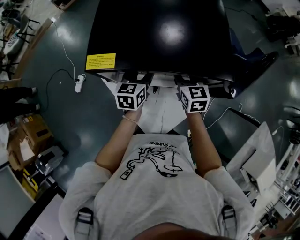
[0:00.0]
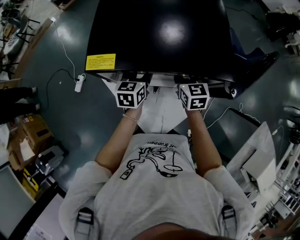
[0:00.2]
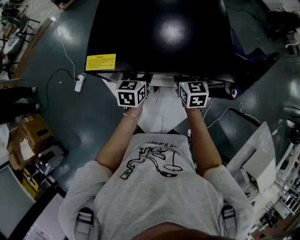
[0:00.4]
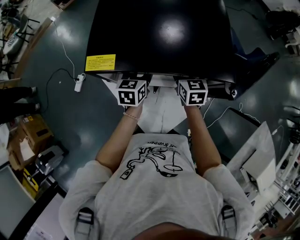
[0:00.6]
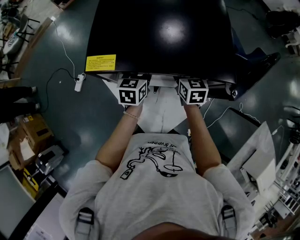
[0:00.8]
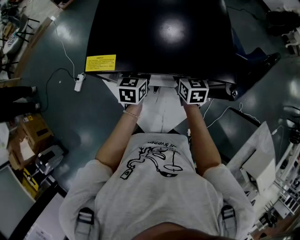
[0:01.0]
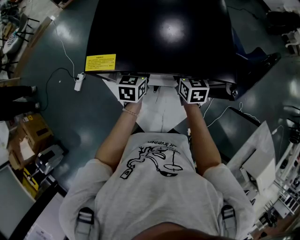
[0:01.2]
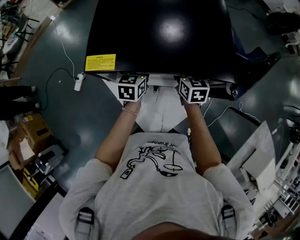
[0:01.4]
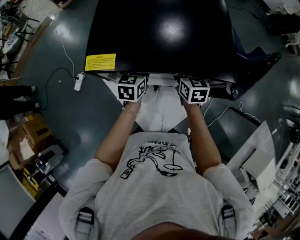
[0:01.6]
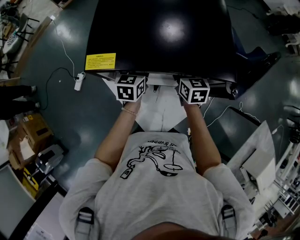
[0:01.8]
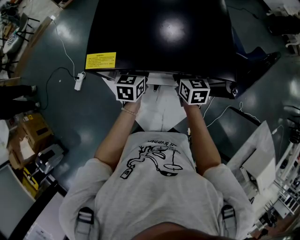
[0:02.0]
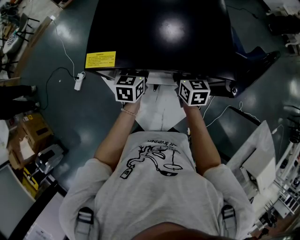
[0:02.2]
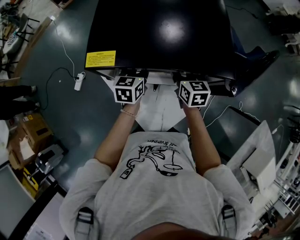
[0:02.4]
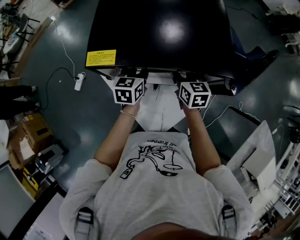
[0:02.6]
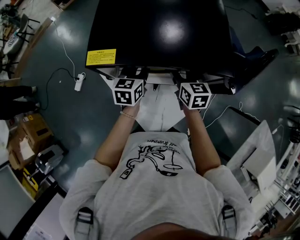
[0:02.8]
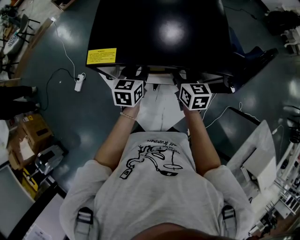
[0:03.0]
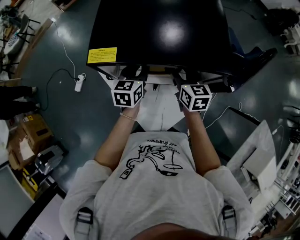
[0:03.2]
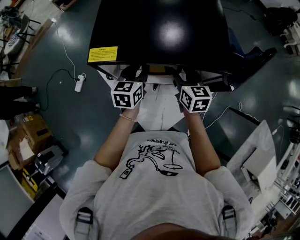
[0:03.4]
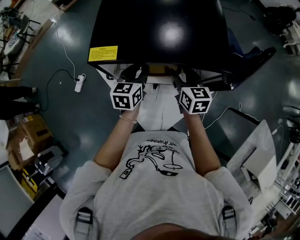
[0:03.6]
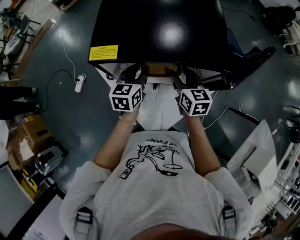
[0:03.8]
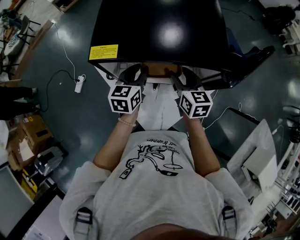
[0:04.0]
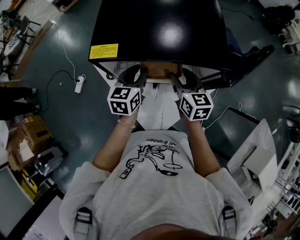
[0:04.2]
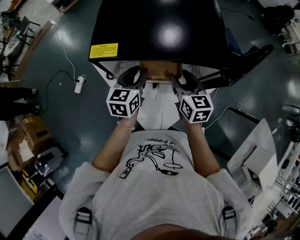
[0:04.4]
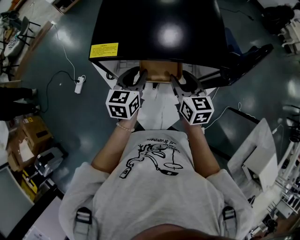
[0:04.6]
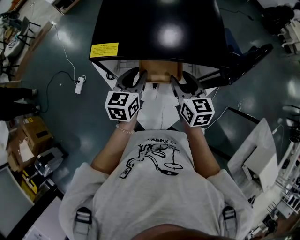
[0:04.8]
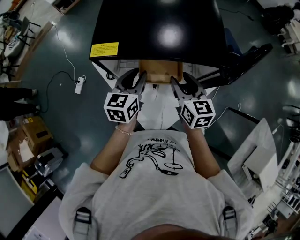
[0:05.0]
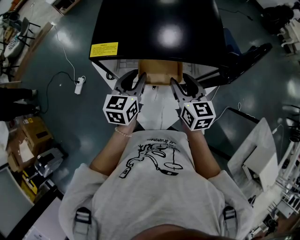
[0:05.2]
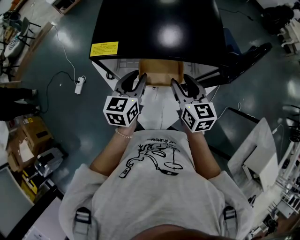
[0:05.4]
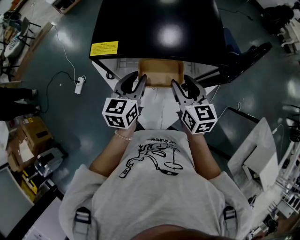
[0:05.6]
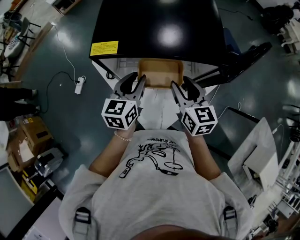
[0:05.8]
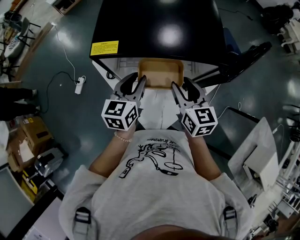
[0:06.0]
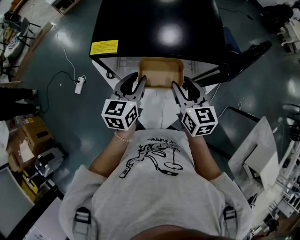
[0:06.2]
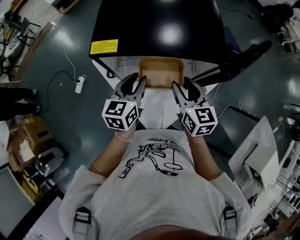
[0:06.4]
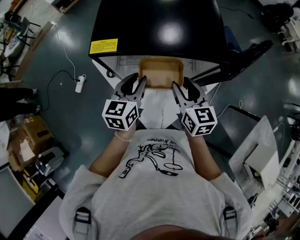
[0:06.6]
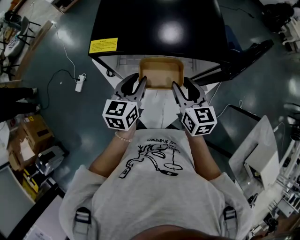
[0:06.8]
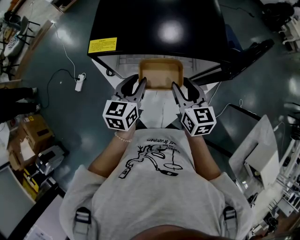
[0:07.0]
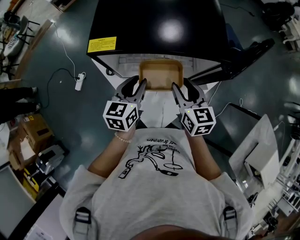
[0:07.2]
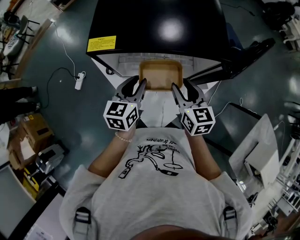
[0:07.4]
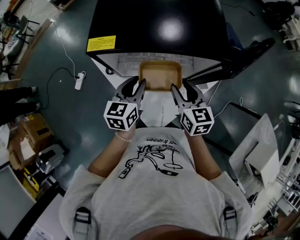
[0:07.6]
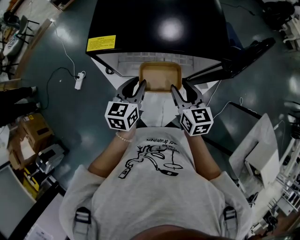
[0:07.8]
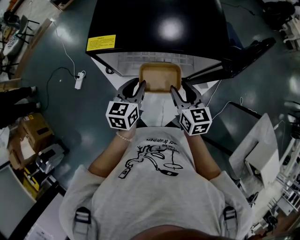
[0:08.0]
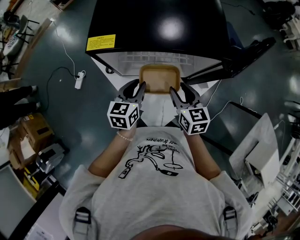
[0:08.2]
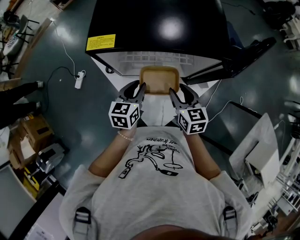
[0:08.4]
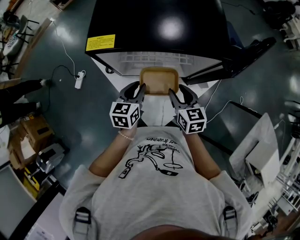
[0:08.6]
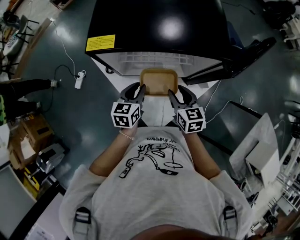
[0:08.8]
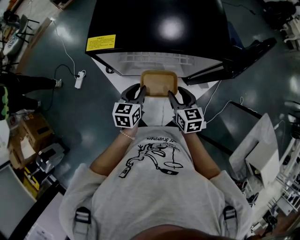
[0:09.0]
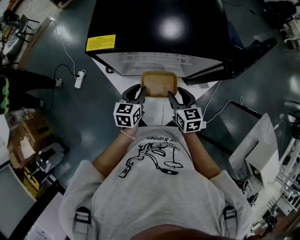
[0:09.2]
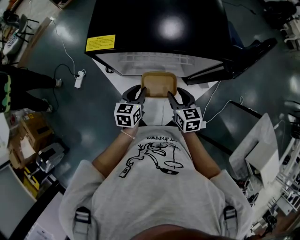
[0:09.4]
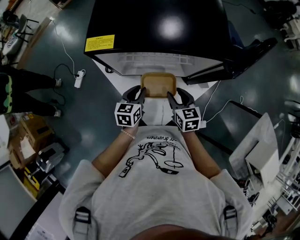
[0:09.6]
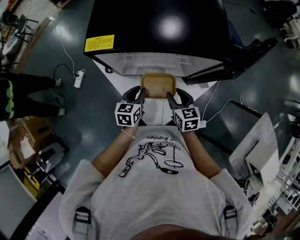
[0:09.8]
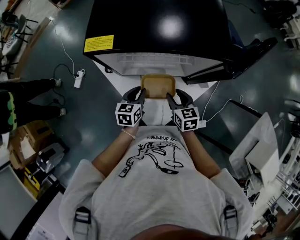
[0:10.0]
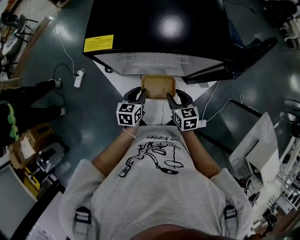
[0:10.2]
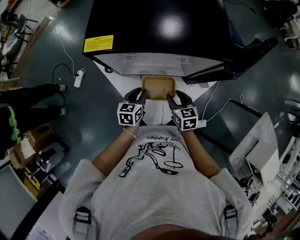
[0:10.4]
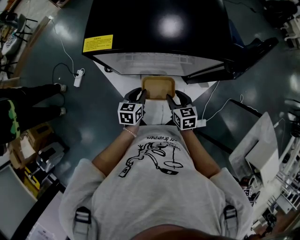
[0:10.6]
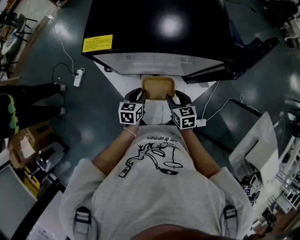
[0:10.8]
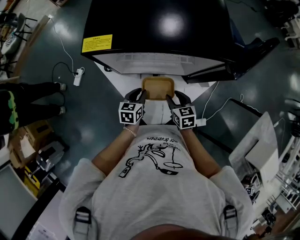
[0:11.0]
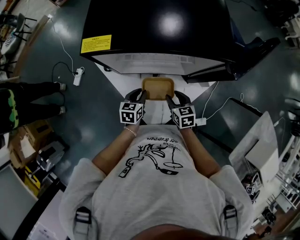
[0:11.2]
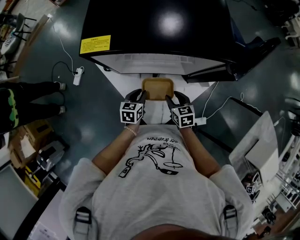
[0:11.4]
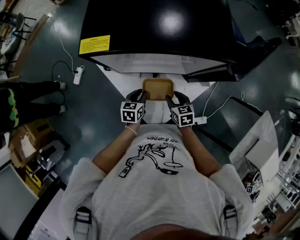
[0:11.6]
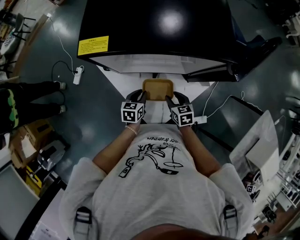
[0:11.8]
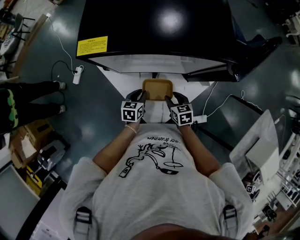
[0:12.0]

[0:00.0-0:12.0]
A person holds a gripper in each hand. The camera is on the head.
0:00.0 to 0:03.0: The grippers stay close to where they were, moving slightly.
0:03.0 to 0:04.4: The left gripper shifts by approximately 5 cm. The right gripper travels backward by about 5 cm.
0:04.4 to 0:06.0: The left gripper ends up about 5 cm from where it was, while the right gripper ends up approximately 5 cm from where it was.
0:06.0 to 0:07.6: The grippers move only a little.
0:07.6 to 0:09.0: Both grippers travel together downward, roughly 10 cm.
0:09.0 to 0:10.4: The grippers both shift downward by about 5 cm.
0:10.4 to 0:12.0: Both grippers travel together downward, roughly 10 cm.

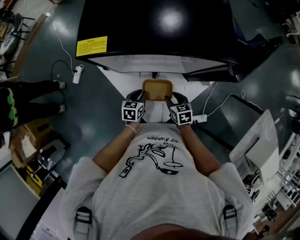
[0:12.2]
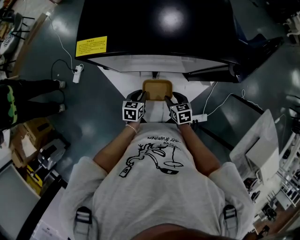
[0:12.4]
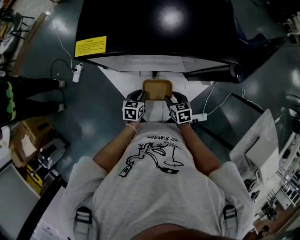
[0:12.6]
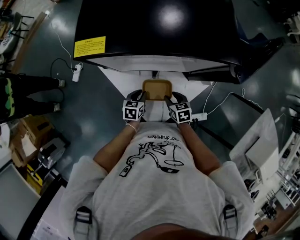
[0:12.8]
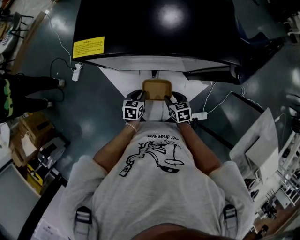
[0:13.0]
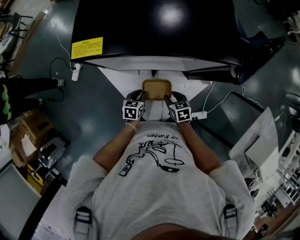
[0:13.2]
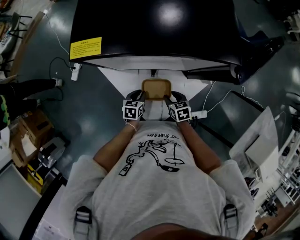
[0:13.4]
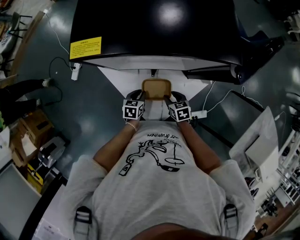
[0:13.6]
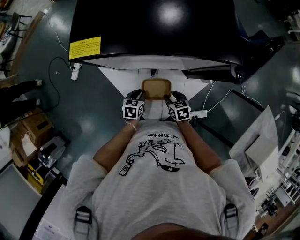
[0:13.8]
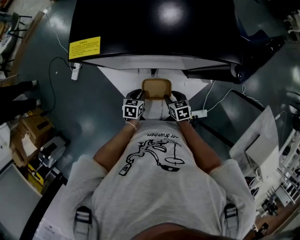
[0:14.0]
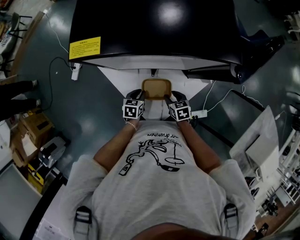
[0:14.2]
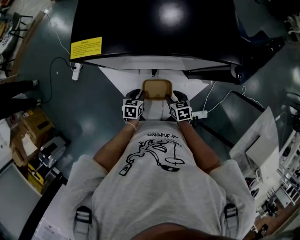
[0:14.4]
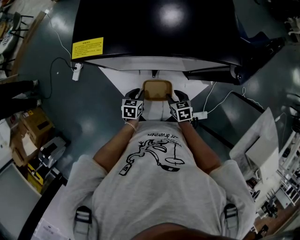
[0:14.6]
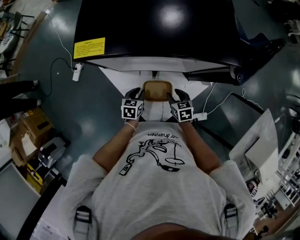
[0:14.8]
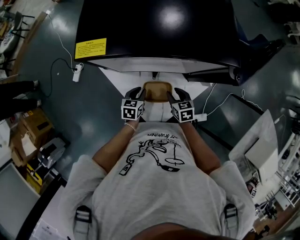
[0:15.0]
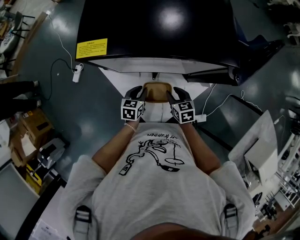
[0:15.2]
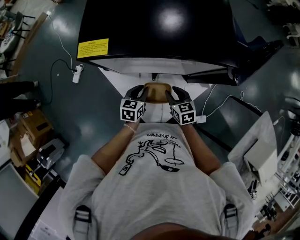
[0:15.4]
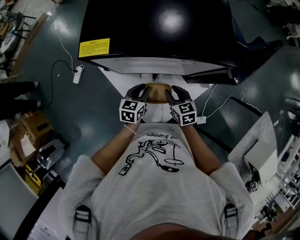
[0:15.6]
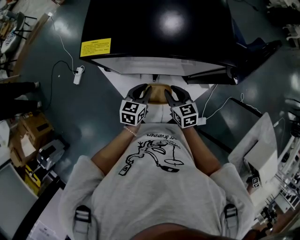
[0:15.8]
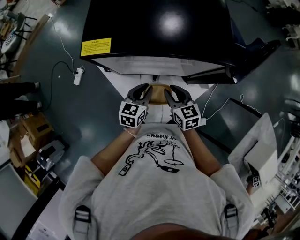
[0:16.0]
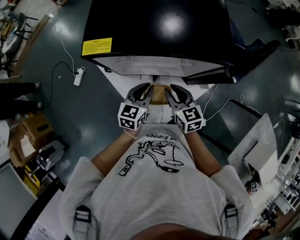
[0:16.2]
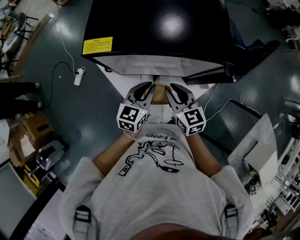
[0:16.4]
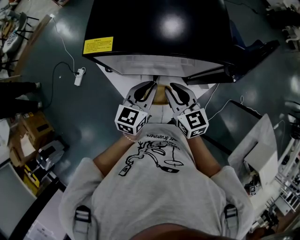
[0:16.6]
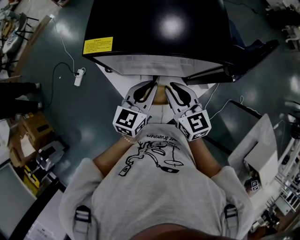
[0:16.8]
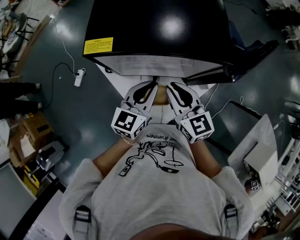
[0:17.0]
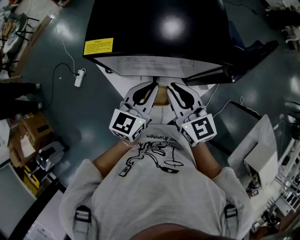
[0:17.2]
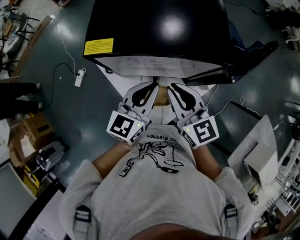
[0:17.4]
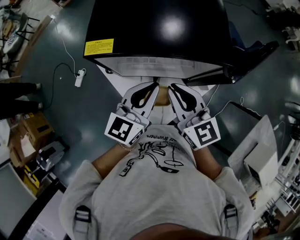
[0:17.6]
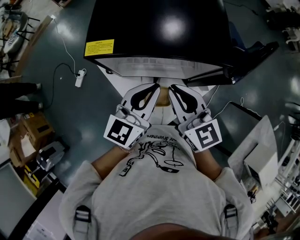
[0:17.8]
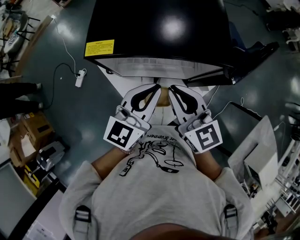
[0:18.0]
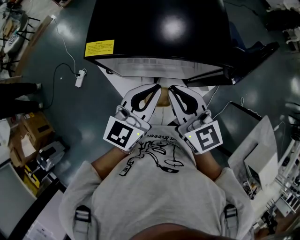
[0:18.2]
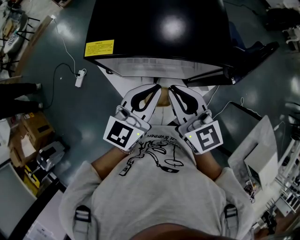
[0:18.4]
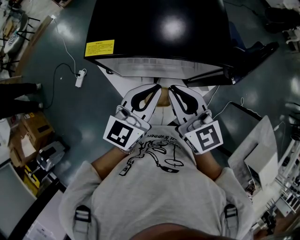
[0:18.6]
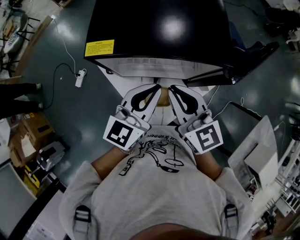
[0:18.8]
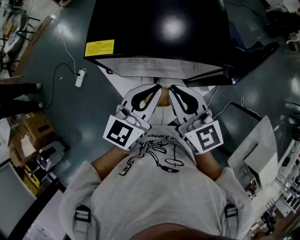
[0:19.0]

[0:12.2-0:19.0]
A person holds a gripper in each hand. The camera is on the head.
0:12.2 to 0:13.6: The grippers move only a little.
0:13.6 to 0:15.0: The left gripper ends up roughly 5 cm from where it was. The right gripper ends up roughly 5 cm from where it was.
0:15.0 to 0:16.2: The grippers both shift upward by approximately 15 cm. The left gripper swivels approximately 20 degrees.
0:16.2 to 0:17.6: Both grippers move upward, approximately 15 cm. The left gripper turns by roughly 20 degrees.
0:17.6 to 0:19.0: There are only small adjustments of the grippers.

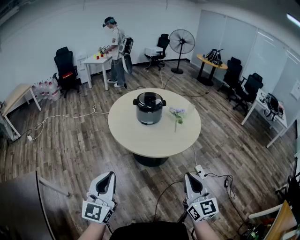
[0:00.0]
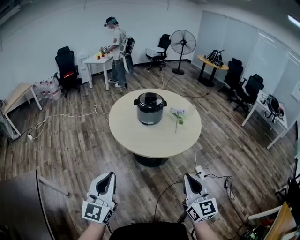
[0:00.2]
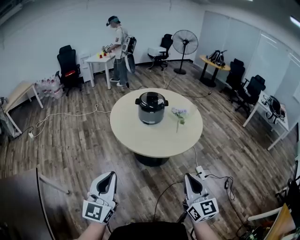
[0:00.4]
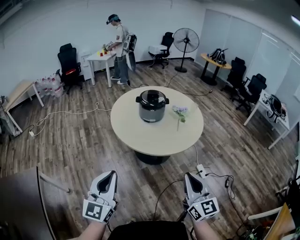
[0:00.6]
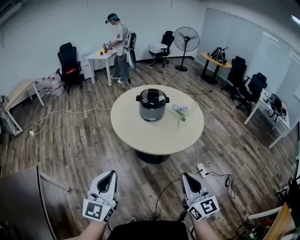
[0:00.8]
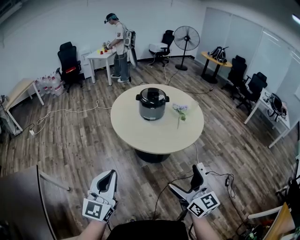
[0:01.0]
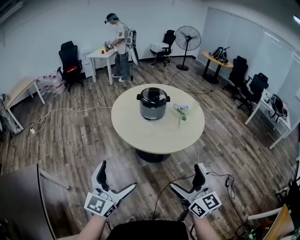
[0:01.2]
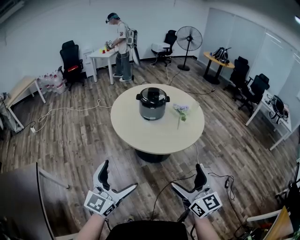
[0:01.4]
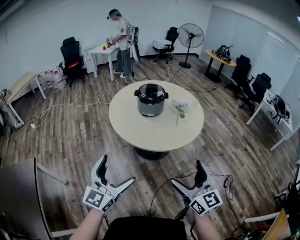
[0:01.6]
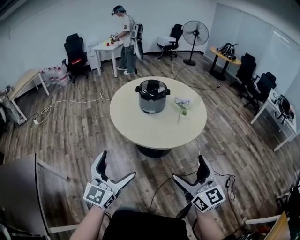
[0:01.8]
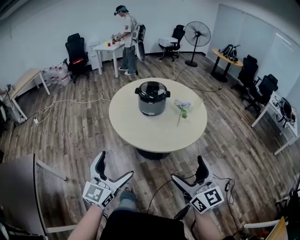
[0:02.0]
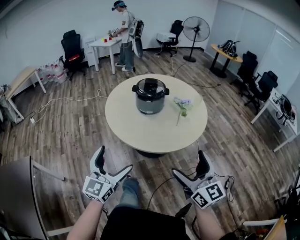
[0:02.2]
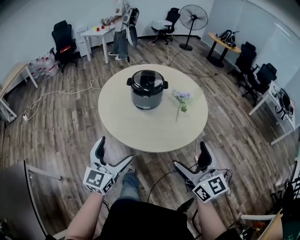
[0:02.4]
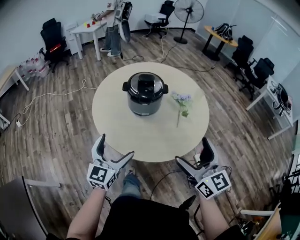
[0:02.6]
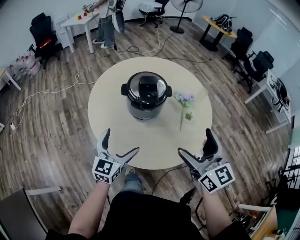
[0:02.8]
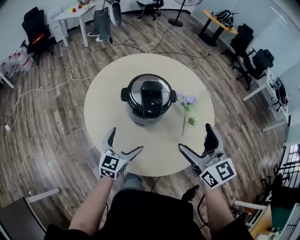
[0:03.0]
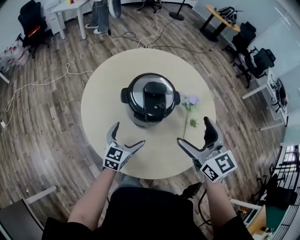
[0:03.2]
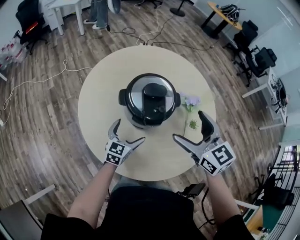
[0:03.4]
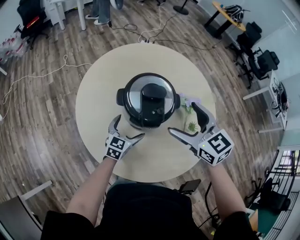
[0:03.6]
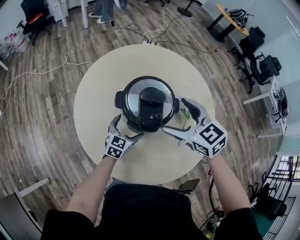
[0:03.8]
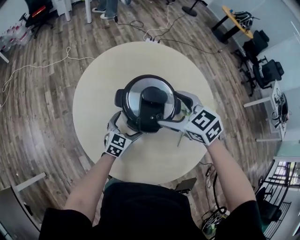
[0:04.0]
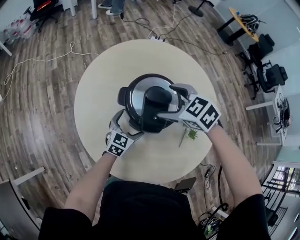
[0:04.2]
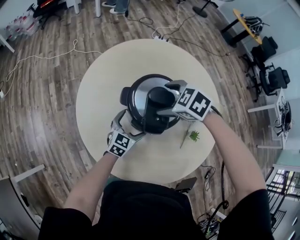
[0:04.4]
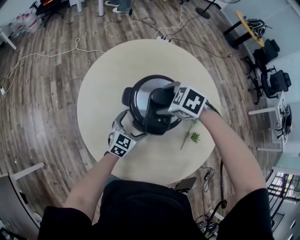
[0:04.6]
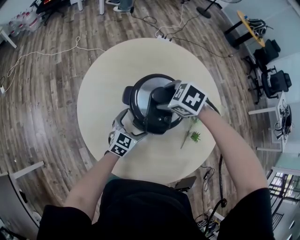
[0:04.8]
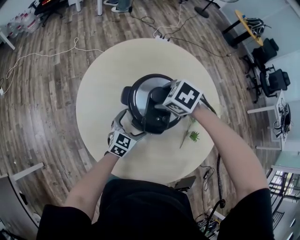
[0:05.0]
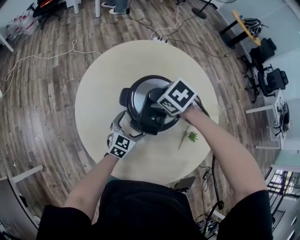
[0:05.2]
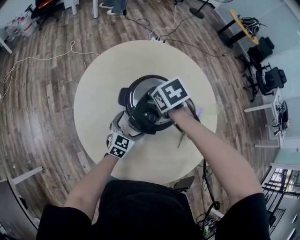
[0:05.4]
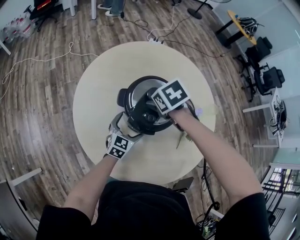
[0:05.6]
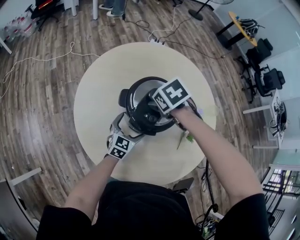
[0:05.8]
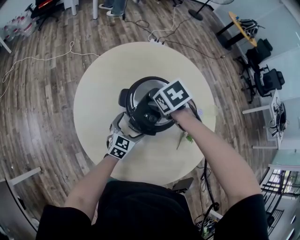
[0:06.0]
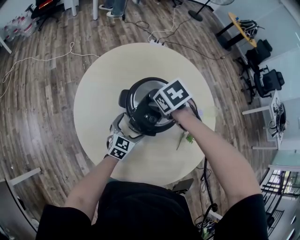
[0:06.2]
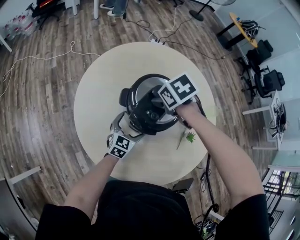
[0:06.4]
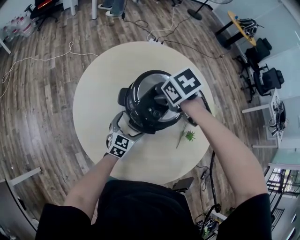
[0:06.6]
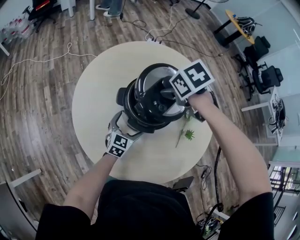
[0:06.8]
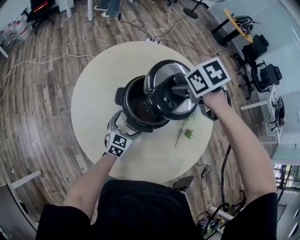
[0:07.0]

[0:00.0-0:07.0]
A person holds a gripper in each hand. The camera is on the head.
0:00.0 to 0:01.4: The right gripper opens. The left gripper is displaced to the right by some 5 cm, and opens up.
0:01.4 to 0:02.8: Both grippers are carried forward, some 50 cm.
0:02.8 to 0:04.2: The two grippers go about 35 cm forward and downward. The right gripper tips its fingers downward by some 50 degrees.
0:04.2 to 0:05.6: The right gripper travels downward by some 5 cm, and changes its angle by about 30 degrees.
0:05.6 to 0:07.0: The right gripper heads upward, covering roughly 10 cm.
